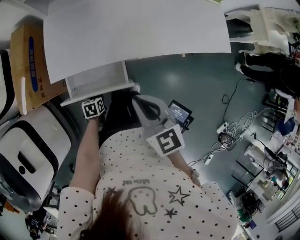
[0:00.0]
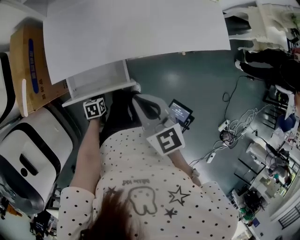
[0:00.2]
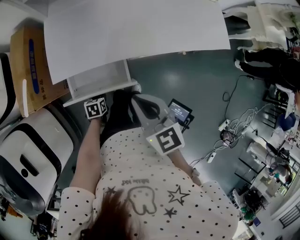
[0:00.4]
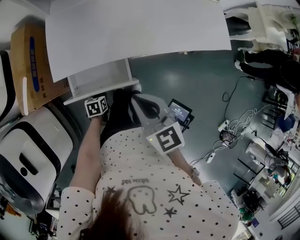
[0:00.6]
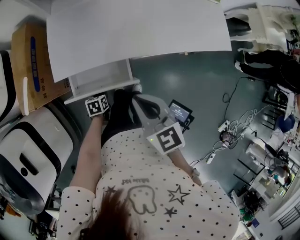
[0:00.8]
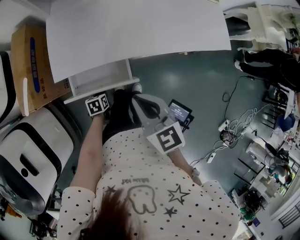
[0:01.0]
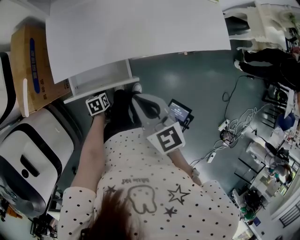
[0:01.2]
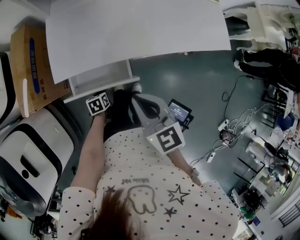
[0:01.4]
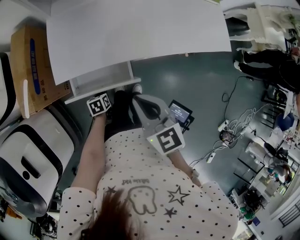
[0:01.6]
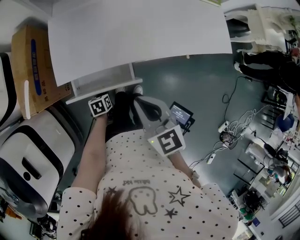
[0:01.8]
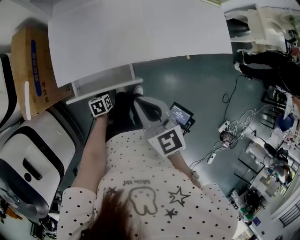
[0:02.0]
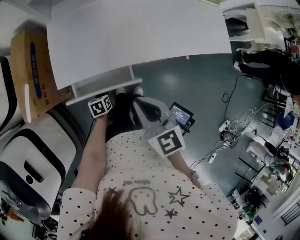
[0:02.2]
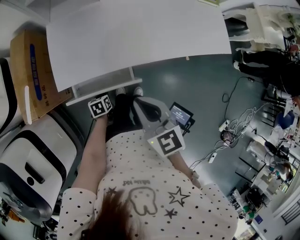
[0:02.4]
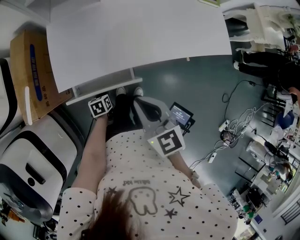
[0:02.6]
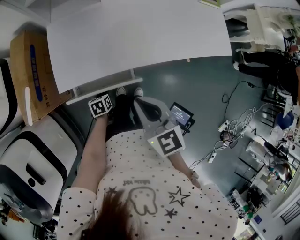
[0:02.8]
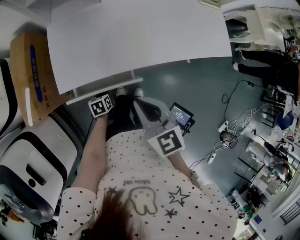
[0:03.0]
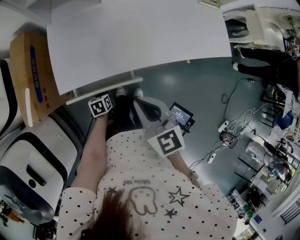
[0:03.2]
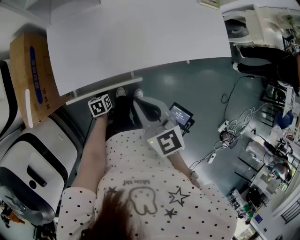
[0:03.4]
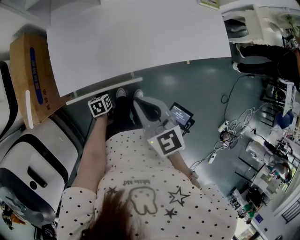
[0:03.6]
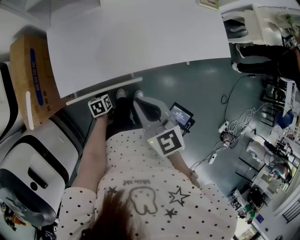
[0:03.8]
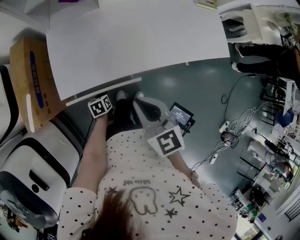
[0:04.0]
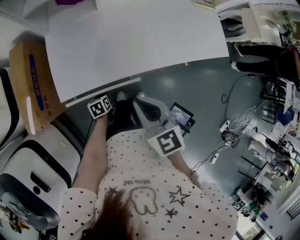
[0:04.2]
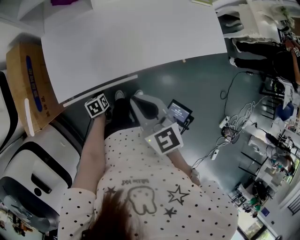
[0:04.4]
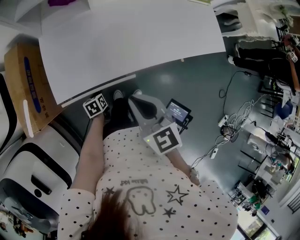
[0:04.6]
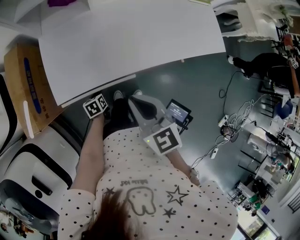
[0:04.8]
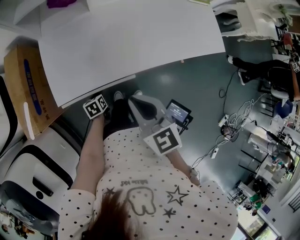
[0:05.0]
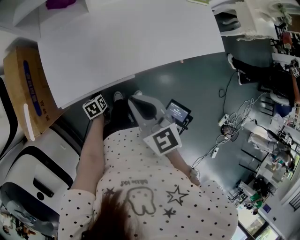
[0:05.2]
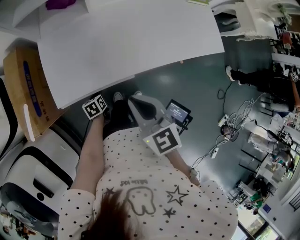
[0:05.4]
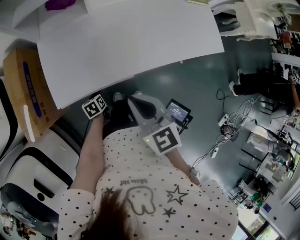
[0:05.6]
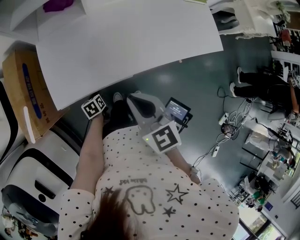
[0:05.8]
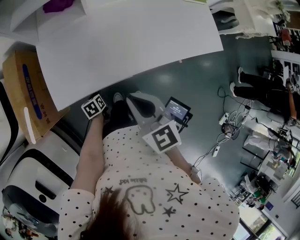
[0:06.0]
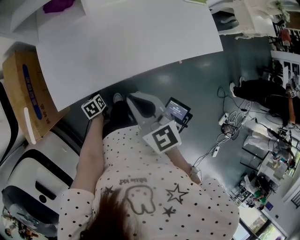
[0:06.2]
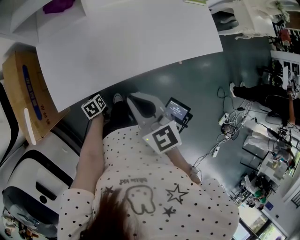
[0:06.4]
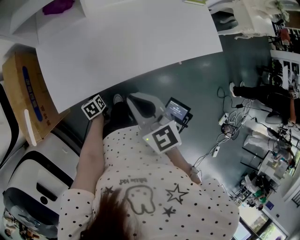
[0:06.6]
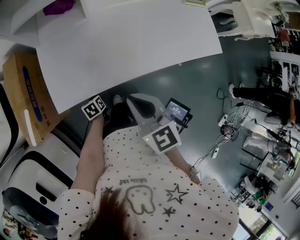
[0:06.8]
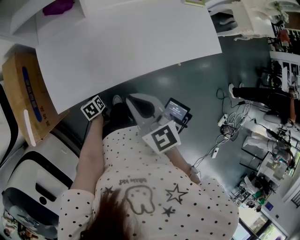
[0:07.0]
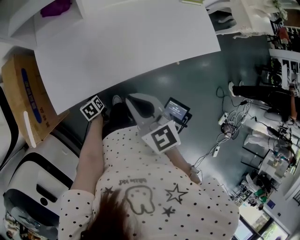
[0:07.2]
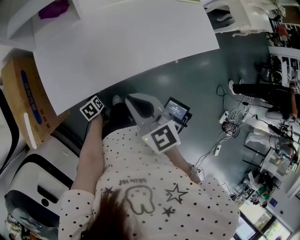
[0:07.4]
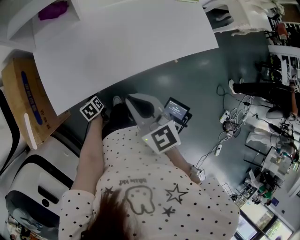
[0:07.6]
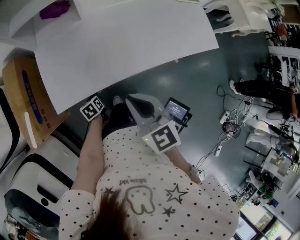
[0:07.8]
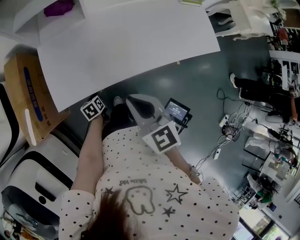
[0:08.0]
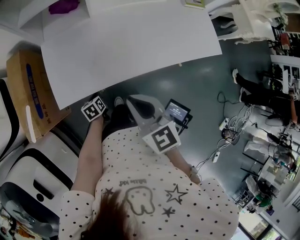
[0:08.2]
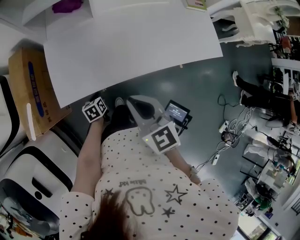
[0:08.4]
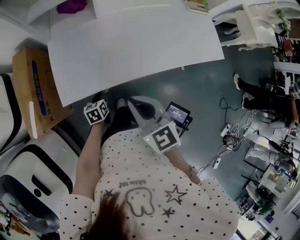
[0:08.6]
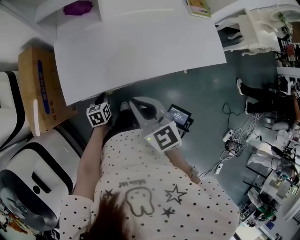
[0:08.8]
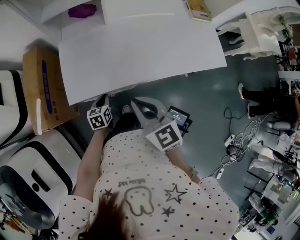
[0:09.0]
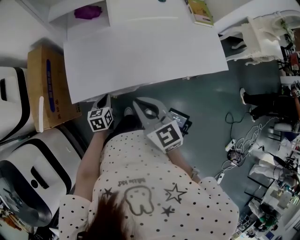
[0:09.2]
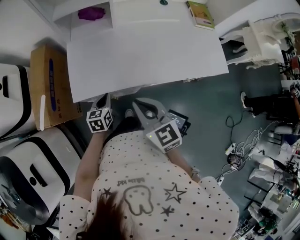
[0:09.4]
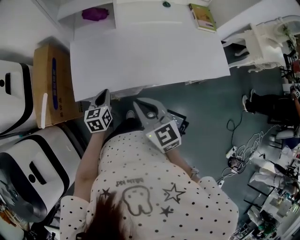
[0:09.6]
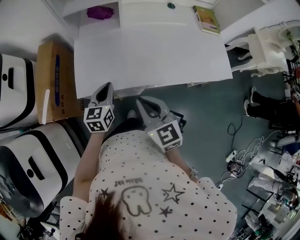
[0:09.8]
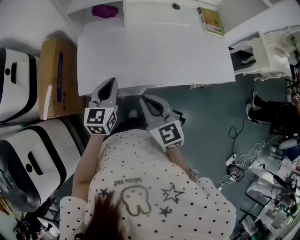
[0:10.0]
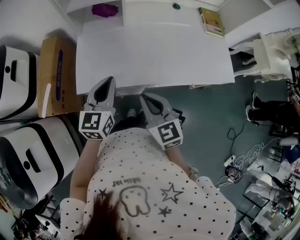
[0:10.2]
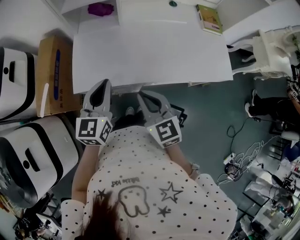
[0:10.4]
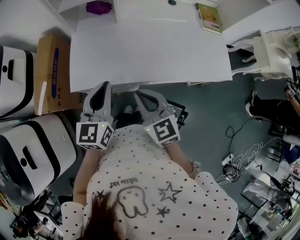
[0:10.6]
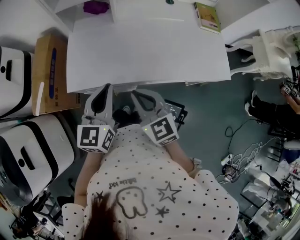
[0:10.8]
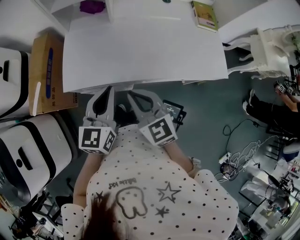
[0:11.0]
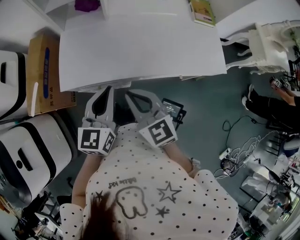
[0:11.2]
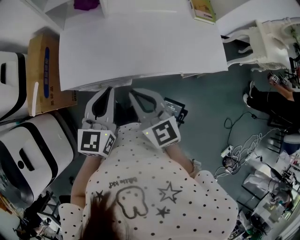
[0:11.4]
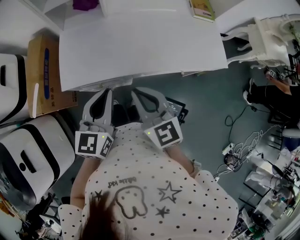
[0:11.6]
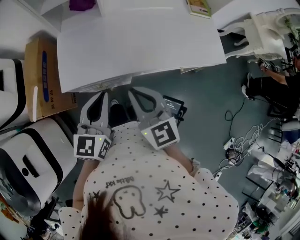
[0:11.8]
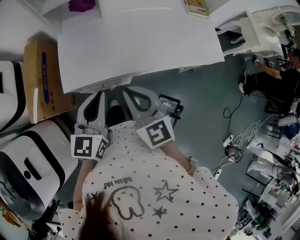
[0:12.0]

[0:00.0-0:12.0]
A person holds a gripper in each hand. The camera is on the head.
0:00.0 to 0:01.6: The grippers make only small movements.
0:01.6 to 0:03.0: There are only small adjustments of the grippers.
0:03.0 to 0:06.0: The grippers stay close to where they were, moving slightly.
0:06.0 to 0:07.6: Neither gripper changes place.
0:07.6 to 0:09.0: The left gripper heads upward, covering approximately 10 cm.
0:09.0 to 0:10.4: The left gripper goes approximately 30 cm upward, and angles its fingers upward, by some 30 degrees.
0:10.4 to 0:12.0: The left gripper moves backward, about 5 cm.

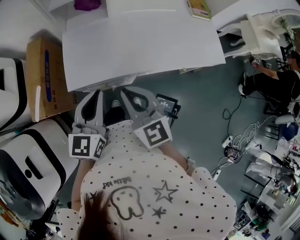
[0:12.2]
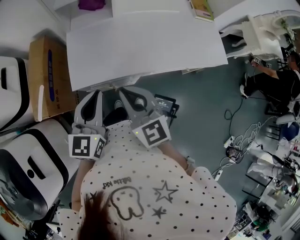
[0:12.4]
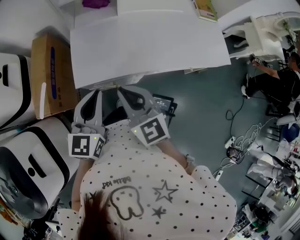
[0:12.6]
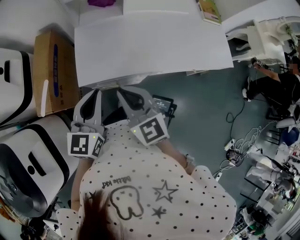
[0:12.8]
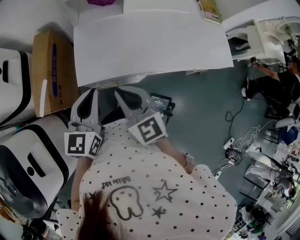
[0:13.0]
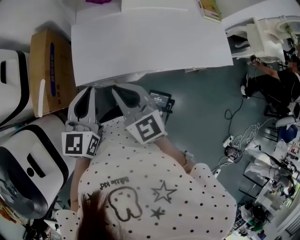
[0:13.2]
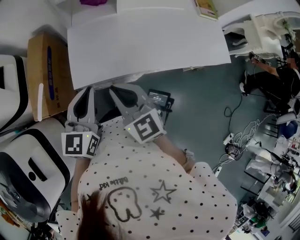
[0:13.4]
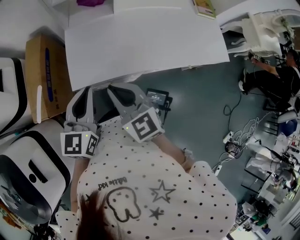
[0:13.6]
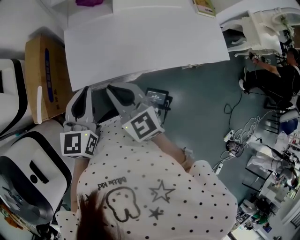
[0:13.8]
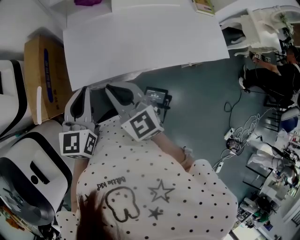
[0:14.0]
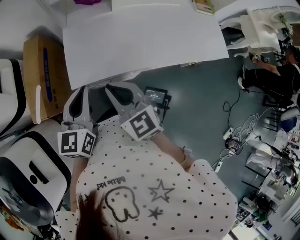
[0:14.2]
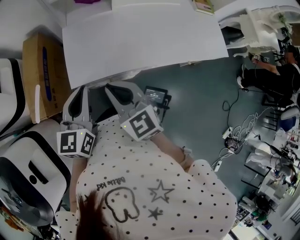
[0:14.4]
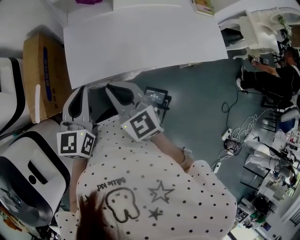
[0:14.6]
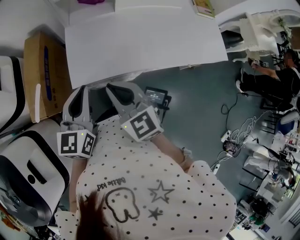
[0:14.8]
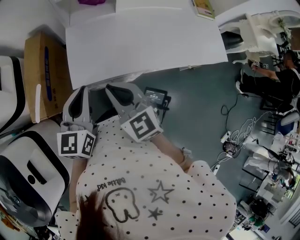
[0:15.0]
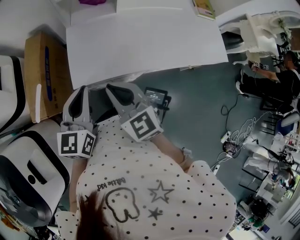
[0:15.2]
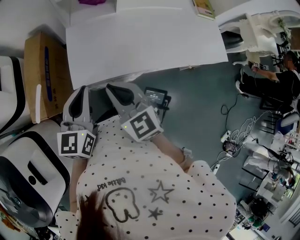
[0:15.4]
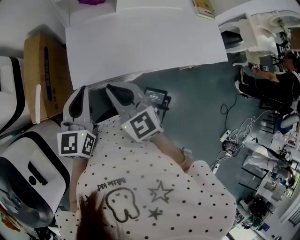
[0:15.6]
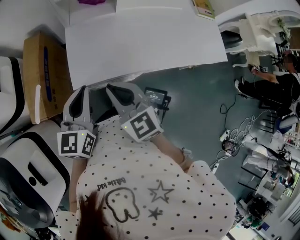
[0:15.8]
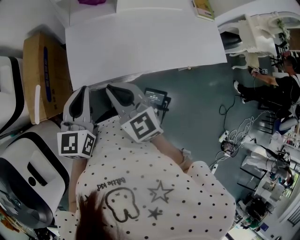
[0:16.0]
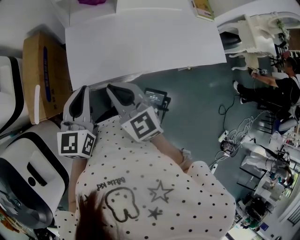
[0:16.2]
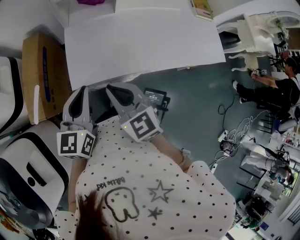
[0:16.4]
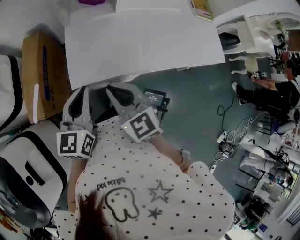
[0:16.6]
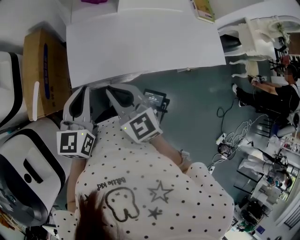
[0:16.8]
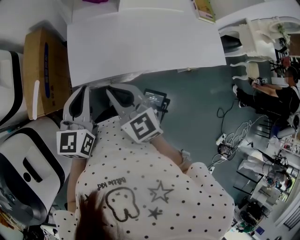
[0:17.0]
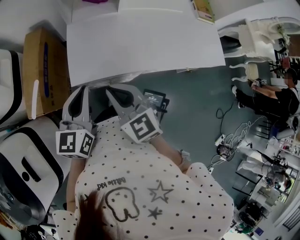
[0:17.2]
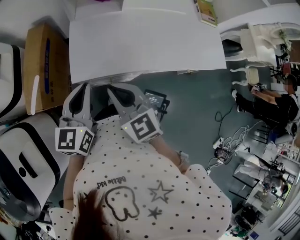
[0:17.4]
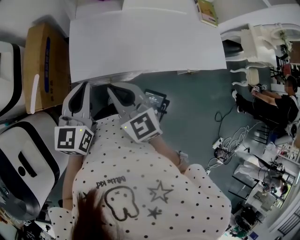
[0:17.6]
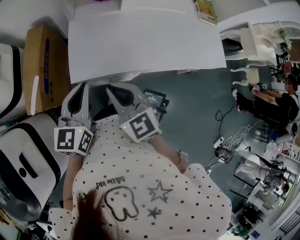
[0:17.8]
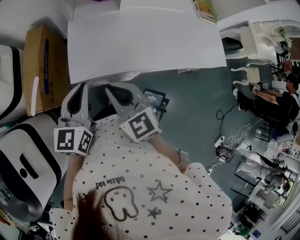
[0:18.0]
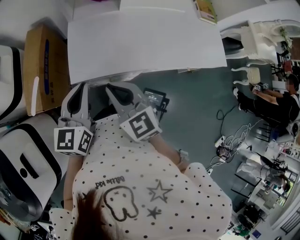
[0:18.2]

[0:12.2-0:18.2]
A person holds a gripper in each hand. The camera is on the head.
0:12.2 to 0:13.8: The two grippers go about 10 cm to the left.
0:13.8 to 0:15.2: The grippers stay close to where they were, moving slightly.
0:15.2 to 0:16.6: Neither gripper changes place.
0:16.6 to 0:18.2: Both grippers stay put.

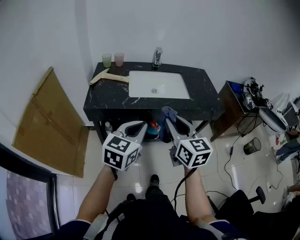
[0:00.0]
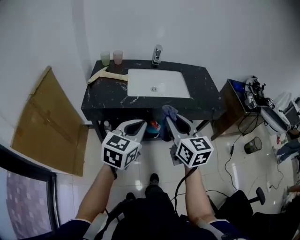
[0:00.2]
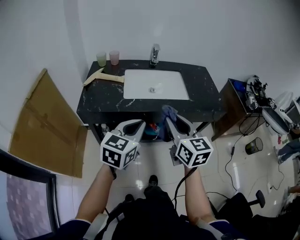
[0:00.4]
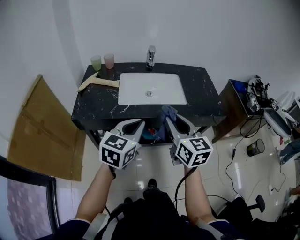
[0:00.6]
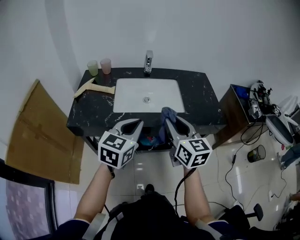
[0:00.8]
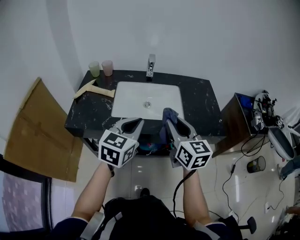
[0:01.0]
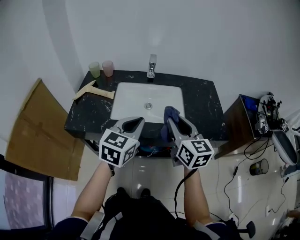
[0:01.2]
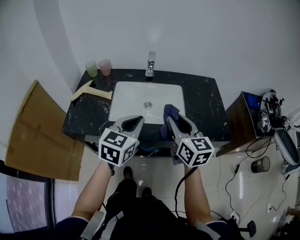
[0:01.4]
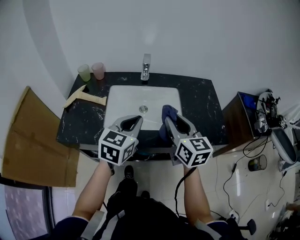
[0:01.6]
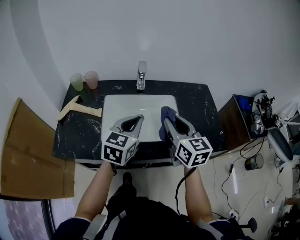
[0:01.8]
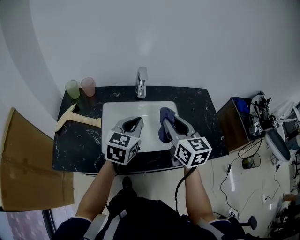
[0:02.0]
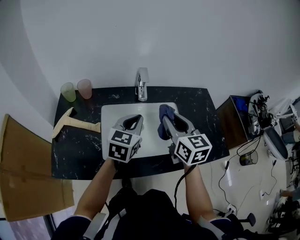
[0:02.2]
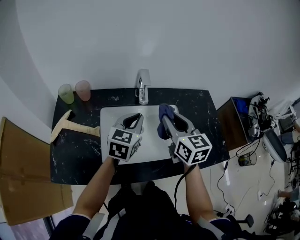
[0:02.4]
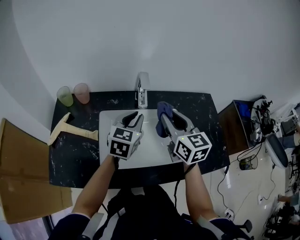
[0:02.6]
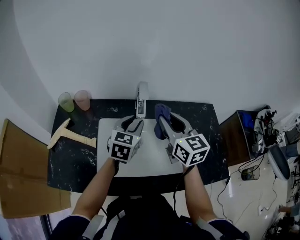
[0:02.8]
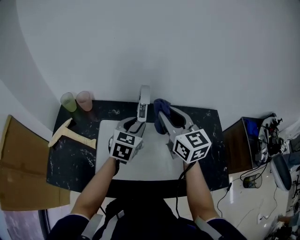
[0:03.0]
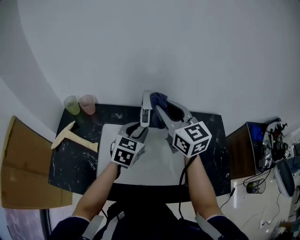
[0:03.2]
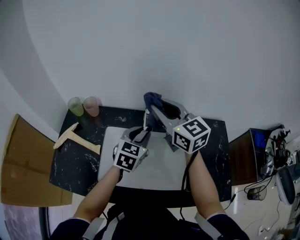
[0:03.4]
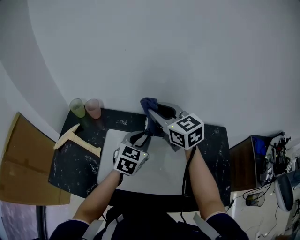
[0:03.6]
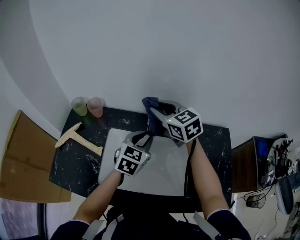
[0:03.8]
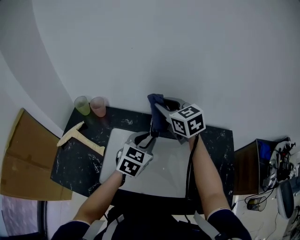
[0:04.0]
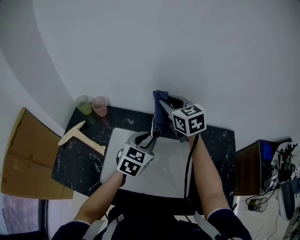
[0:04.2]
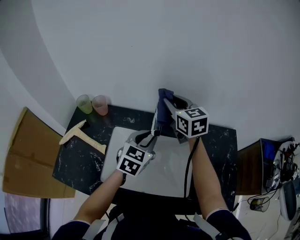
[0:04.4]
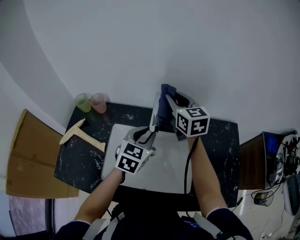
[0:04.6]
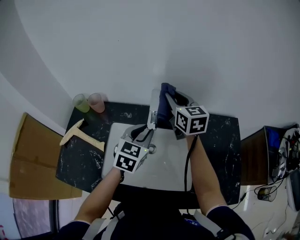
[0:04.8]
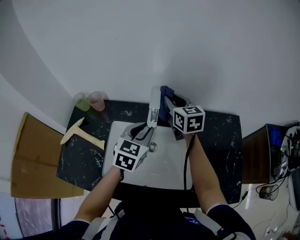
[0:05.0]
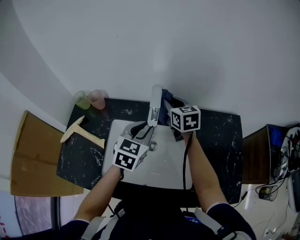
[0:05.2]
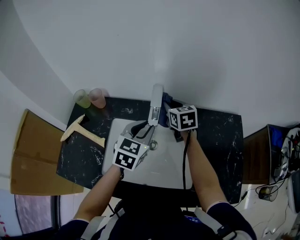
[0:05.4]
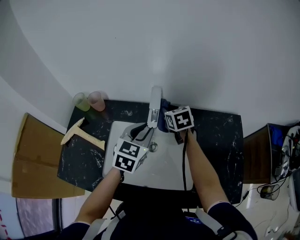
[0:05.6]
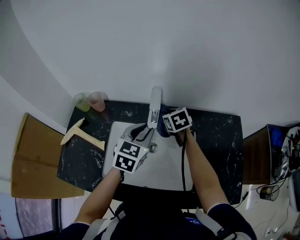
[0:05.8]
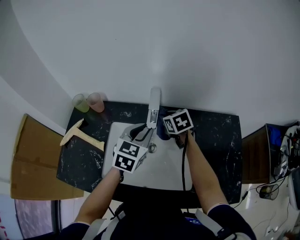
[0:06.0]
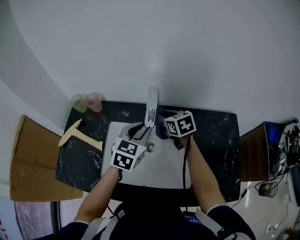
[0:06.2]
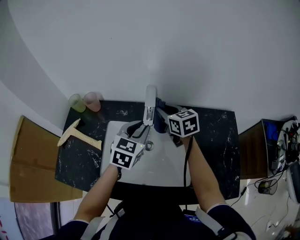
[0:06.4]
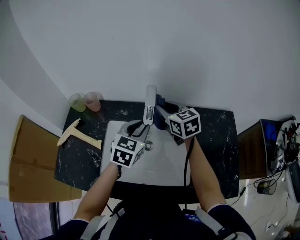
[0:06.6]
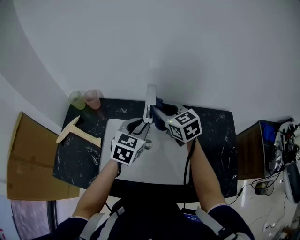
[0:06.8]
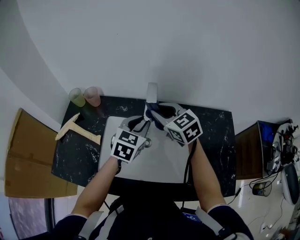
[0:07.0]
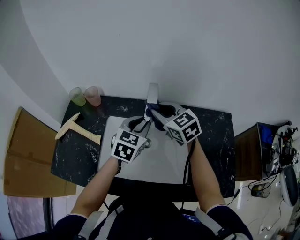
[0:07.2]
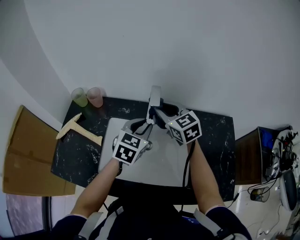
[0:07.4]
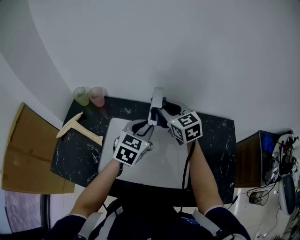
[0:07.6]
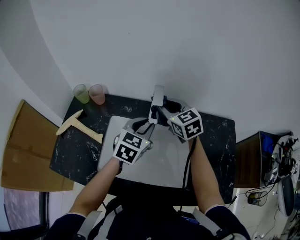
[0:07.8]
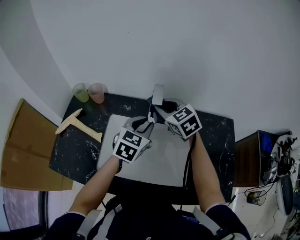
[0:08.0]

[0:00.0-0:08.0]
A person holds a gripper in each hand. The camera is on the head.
0:00.0 to 0:01.6: Both grippers move forward, about 30 cm.
0:01.6 to 0:03.2: Both grippers travel together forward, roughly 25 cm. The left gripper opens up.
0:03.2 to 0:04.8: The right gripper is displaced forward and downward by about 15 cm.
0:04.8 to 0:06.4: The right gripper moves downward, about 10 cm.
0:06.4 to 0:08.0: The right gripper shifts by about 5 cm, and swivels approximately 30 degrees.
